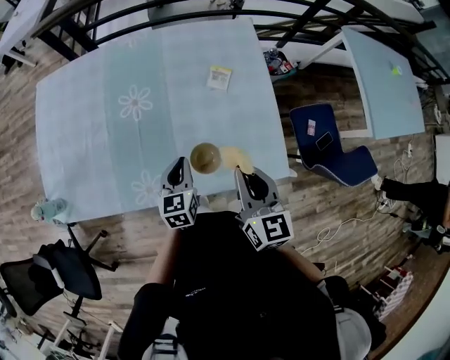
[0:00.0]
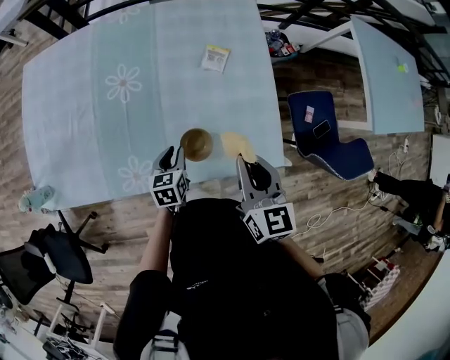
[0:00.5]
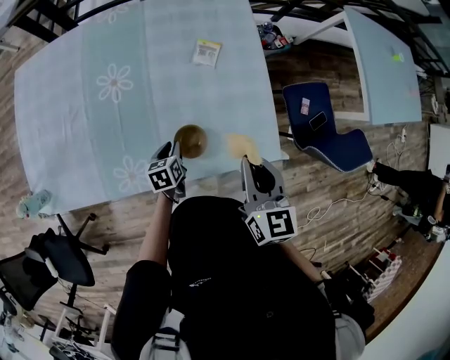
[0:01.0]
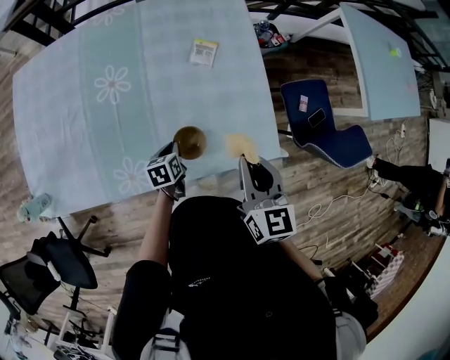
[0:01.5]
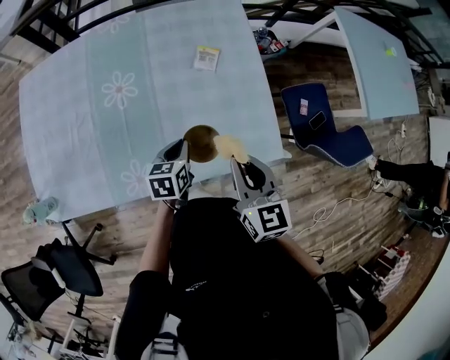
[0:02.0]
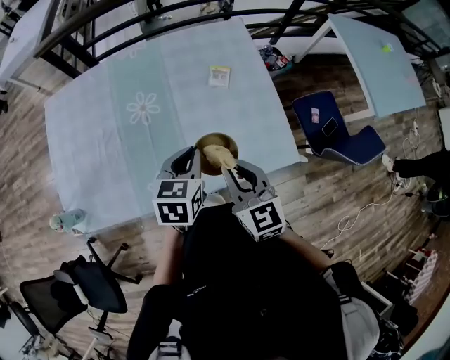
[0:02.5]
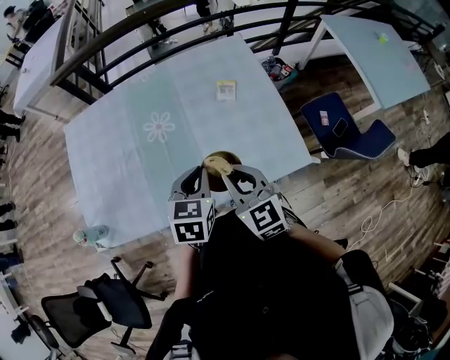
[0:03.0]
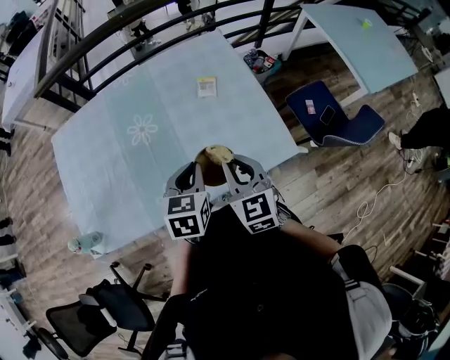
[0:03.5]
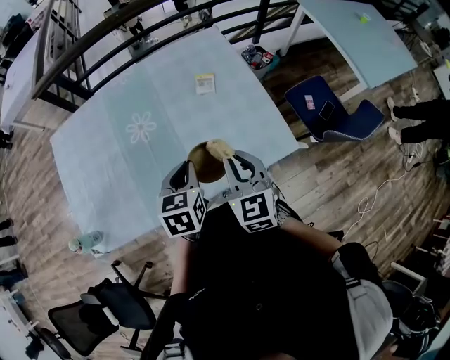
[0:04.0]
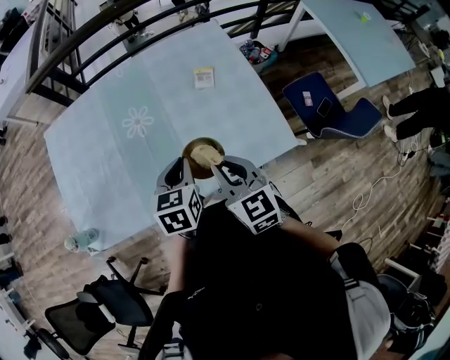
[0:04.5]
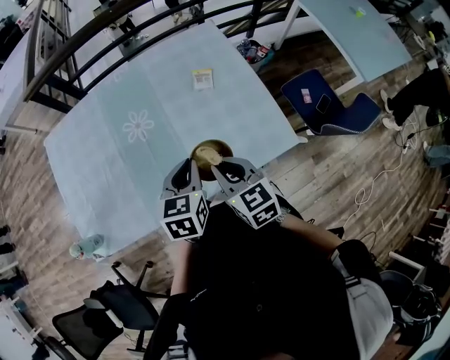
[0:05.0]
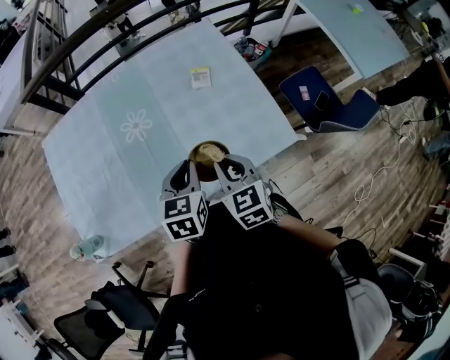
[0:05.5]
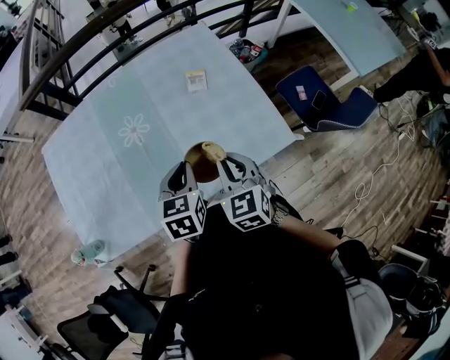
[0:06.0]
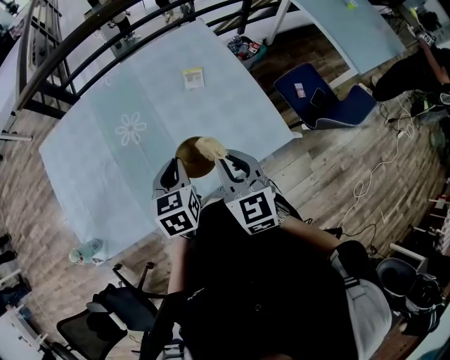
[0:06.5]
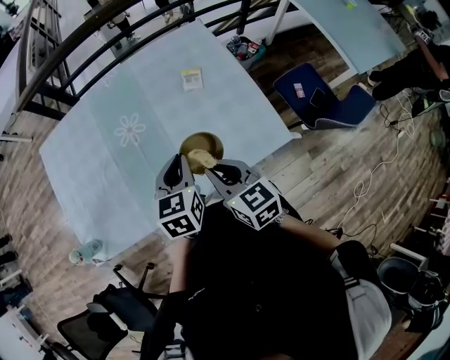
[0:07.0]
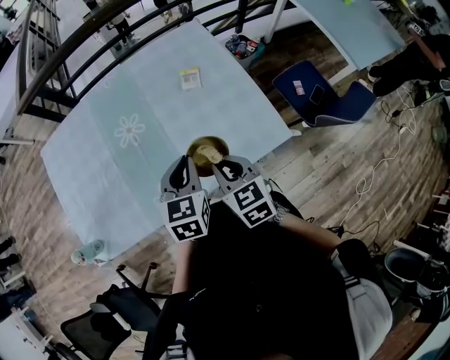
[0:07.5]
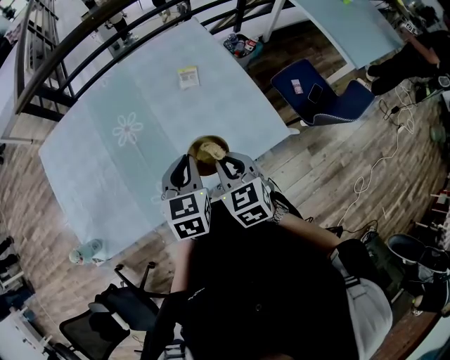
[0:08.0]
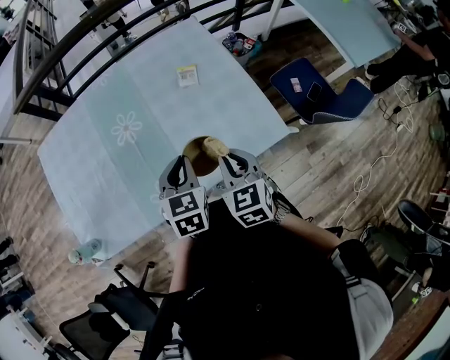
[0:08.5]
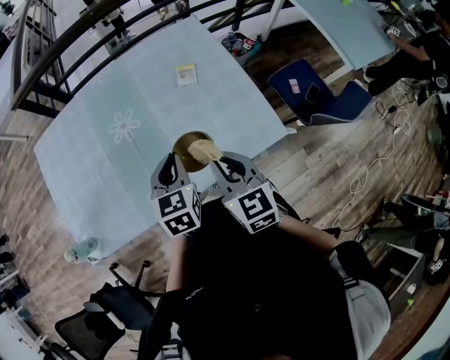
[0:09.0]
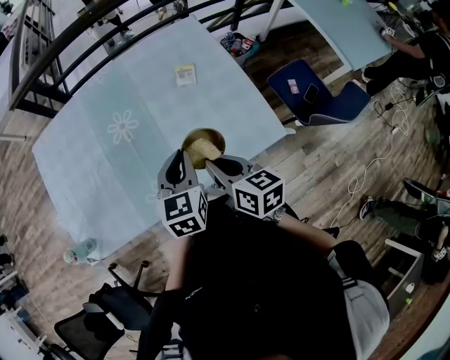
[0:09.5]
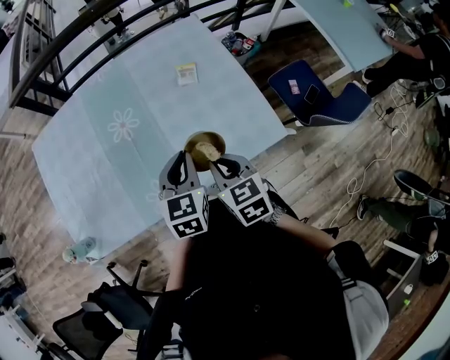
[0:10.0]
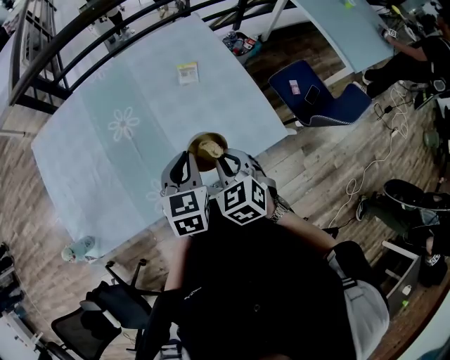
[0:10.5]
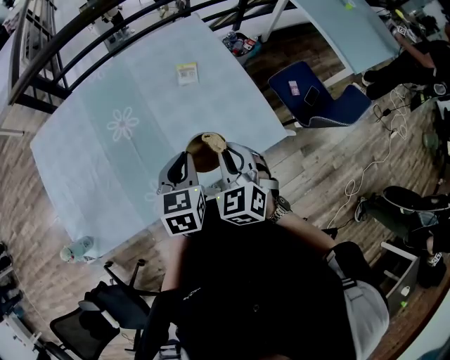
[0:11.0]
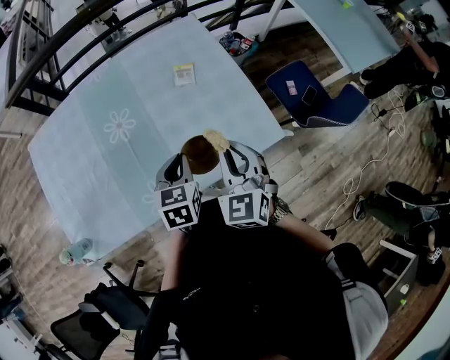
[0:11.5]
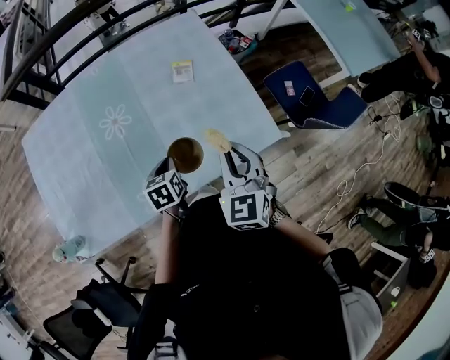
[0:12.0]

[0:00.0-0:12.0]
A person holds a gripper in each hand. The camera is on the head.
0:00.0 to 0:02.0: The left gripper moves some 15 cm downward and comes back, and rotates some 20 degrees.
0:02.0 to 0:04.0: The left gripper heads upward, covering about 15 cm.
0:10.0 to 0:12.0: The left gripper is displaced downward by approximately 15 cm, and changes its angle by about 30 degrees, while the right gripper changes place by some 5 cm, and rotates roughly 30 degrees.

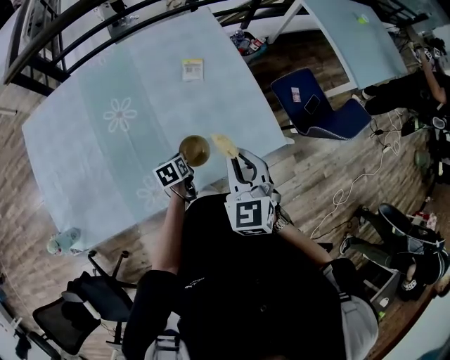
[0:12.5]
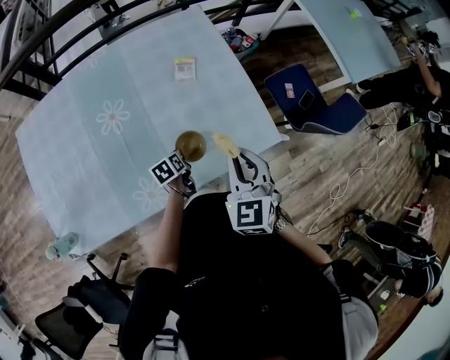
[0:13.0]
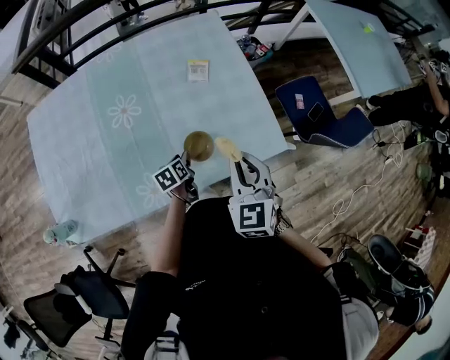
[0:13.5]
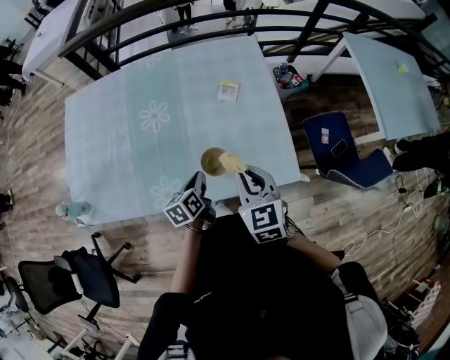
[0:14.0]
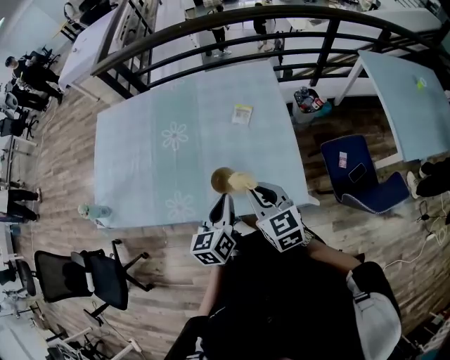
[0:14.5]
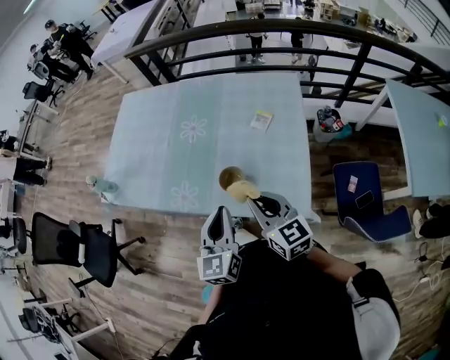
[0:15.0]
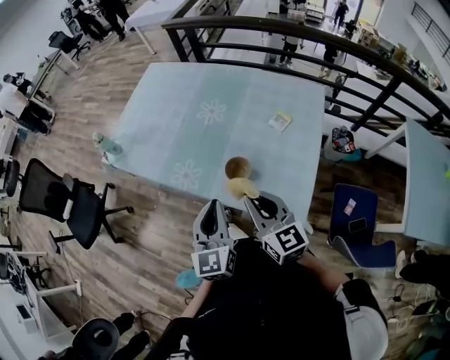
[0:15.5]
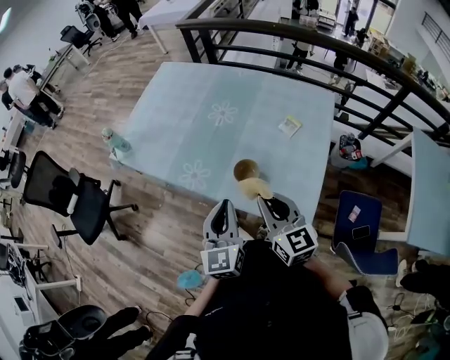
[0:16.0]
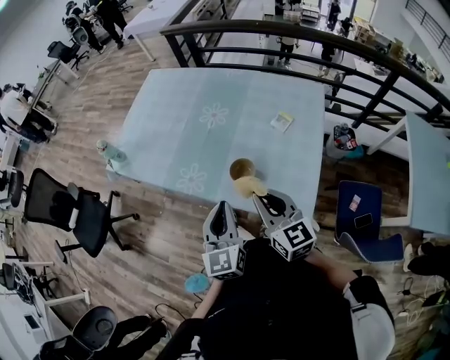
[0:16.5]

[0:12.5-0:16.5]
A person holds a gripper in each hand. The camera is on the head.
0:12.5 to 0:14.5: The left gripper is displaced upward by approximately 25 cm, angles its fingers upward, by approximately 40 degrees, and opens, then closes once more. The right gripper changes place by roughly 5 cm, and rotates some 40 degrees.
0:14.5 to 0:16.5: The left gripper moves about 10 cm, and turns by some 40 degrees; the right gripper moves about 5 cm, and swivels approximately 30 degrees.

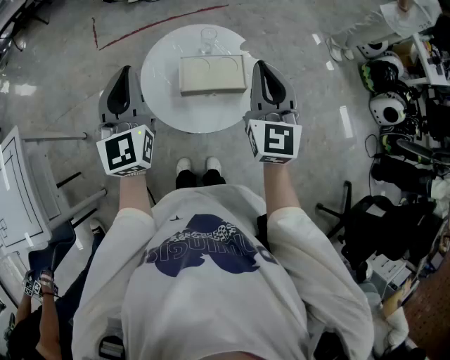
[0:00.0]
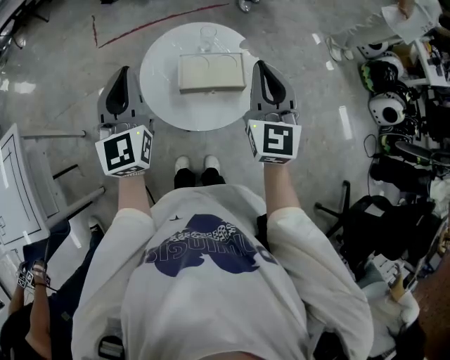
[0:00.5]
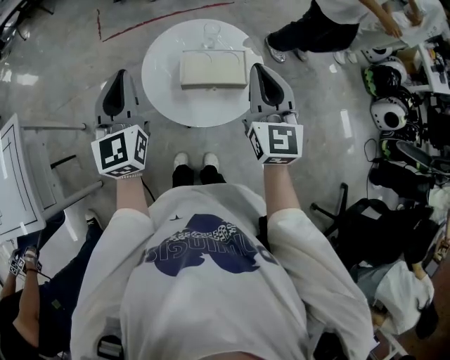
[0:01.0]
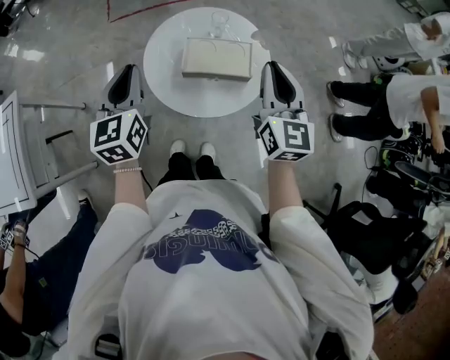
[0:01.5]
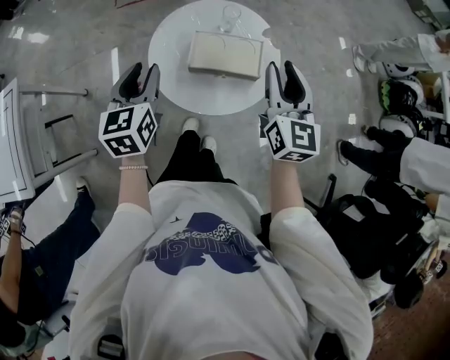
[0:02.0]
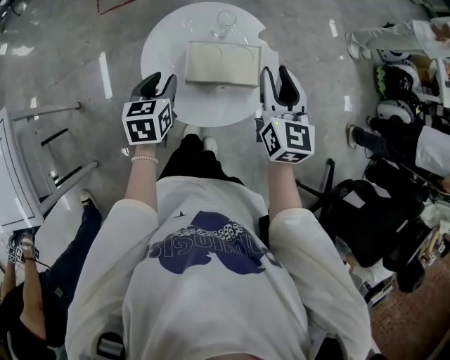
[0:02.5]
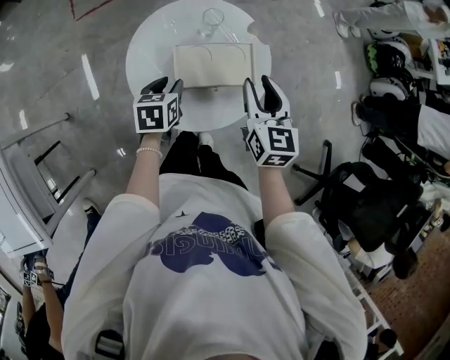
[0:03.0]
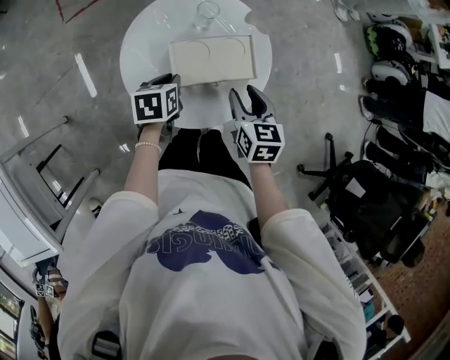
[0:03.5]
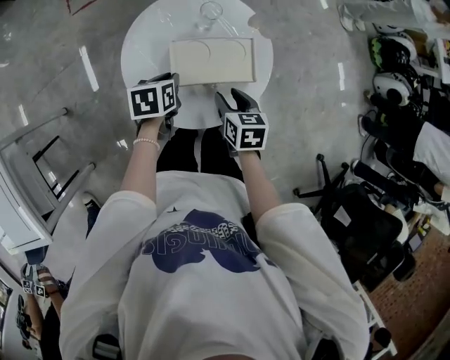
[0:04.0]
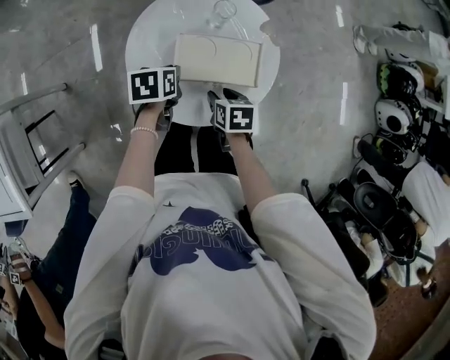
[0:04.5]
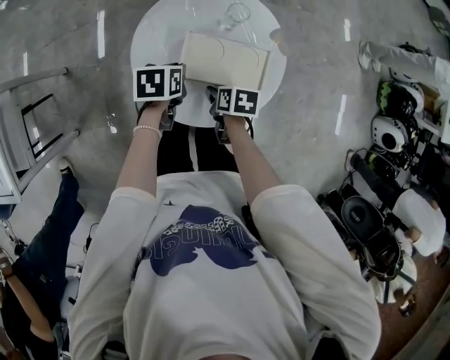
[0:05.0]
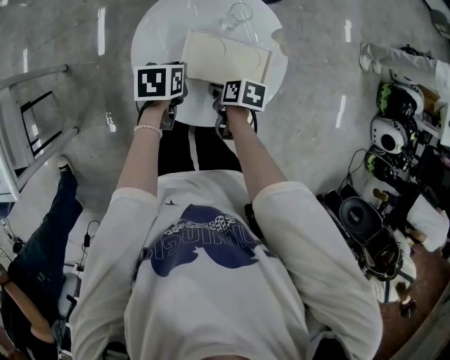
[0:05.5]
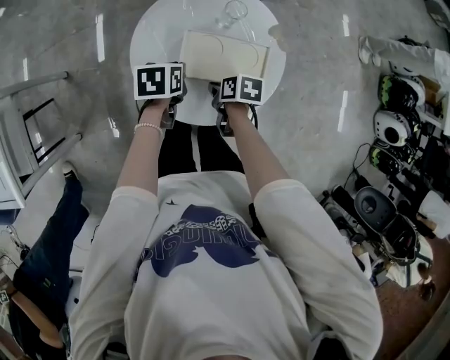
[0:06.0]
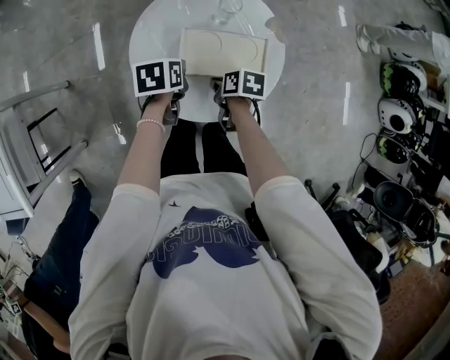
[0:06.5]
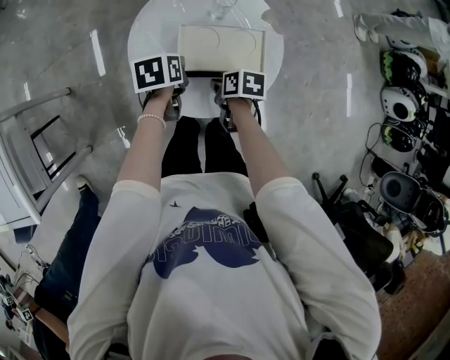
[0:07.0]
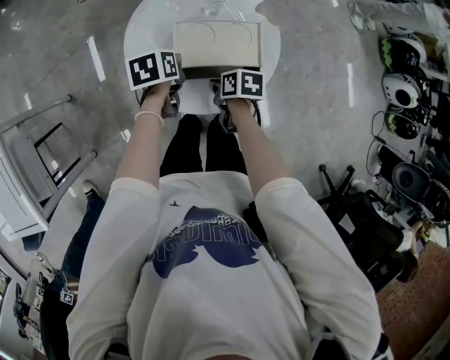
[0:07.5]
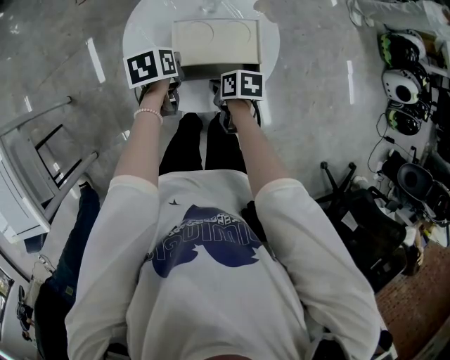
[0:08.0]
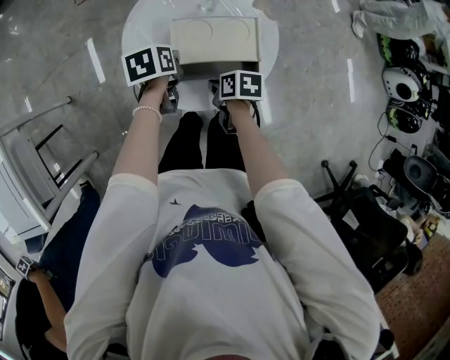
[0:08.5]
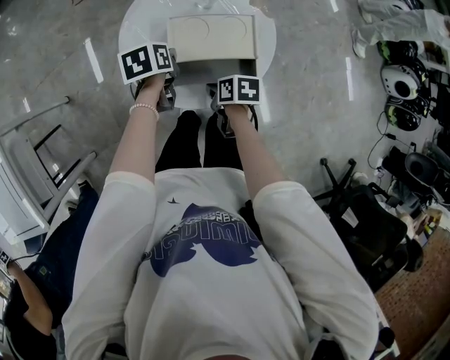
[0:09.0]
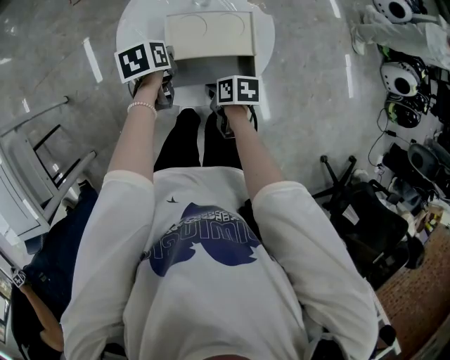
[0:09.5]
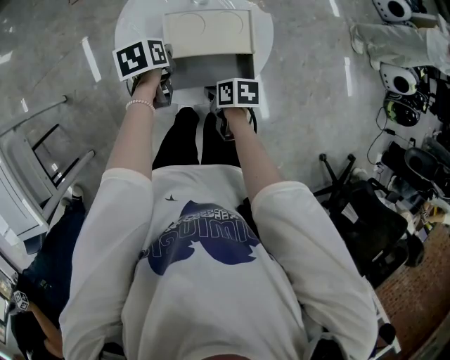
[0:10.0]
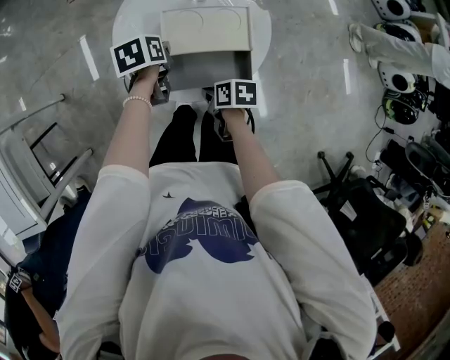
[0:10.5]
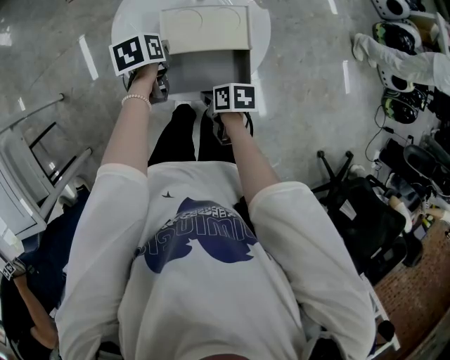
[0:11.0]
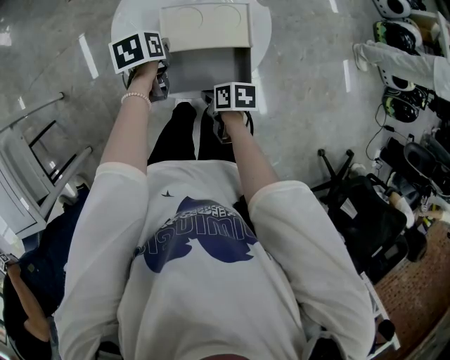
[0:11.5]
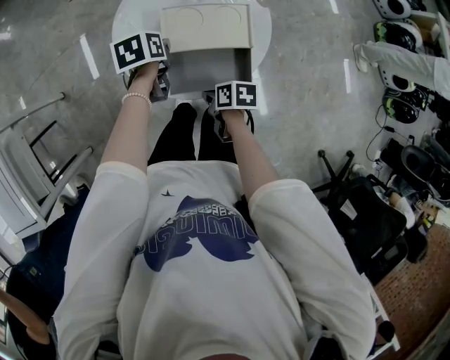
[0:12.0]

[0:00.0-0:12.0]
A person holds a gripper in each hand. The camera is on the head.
0:00.0 to 0:02.0: The left gripper moves downward, about 10 cm, changes its angle by some 30 degrees, and opens its fingers; the right gripper shifts roughly 5 cm downward, and opens up.
0:02.0 to 0:04.0: The left gripper shifts some 25 cm downward and forward, and angles its fingers downward, by roughly 30 degrees; the right gripper travels downward by roughly 25 cm, and tilts its fingers approximately 40 degrees downward.
0:04.0 to 0:06.0: The right gripper is displaced downward by about 10 cm, turns by approximately 30 degrees, and closes up.
0:06.0 to 0:08.0: There are only small adjustments of the grippers.
0:08.0 to 0:10.0: The grippers make only small movements.
0:10.0 to 0:12.0: The grippers move only a little.
